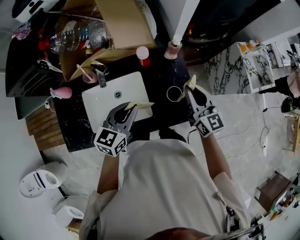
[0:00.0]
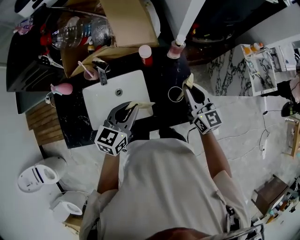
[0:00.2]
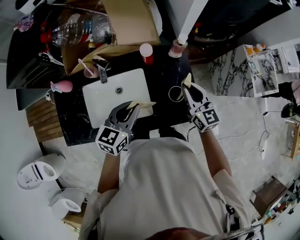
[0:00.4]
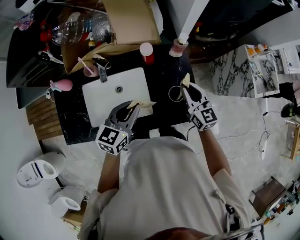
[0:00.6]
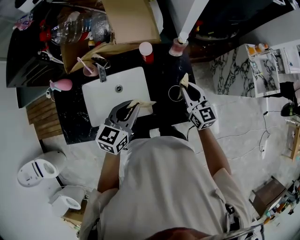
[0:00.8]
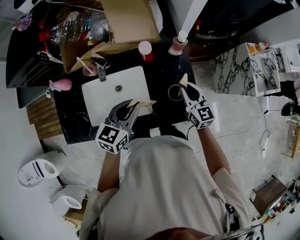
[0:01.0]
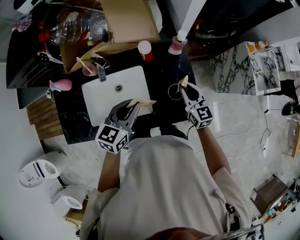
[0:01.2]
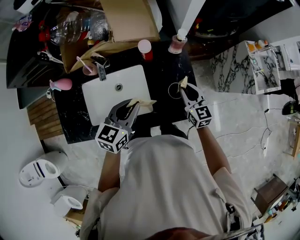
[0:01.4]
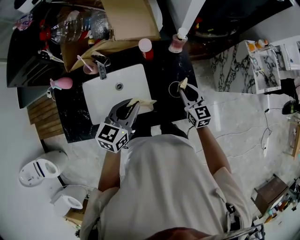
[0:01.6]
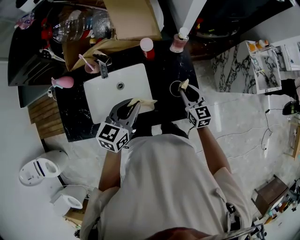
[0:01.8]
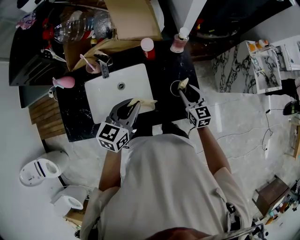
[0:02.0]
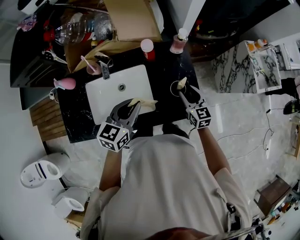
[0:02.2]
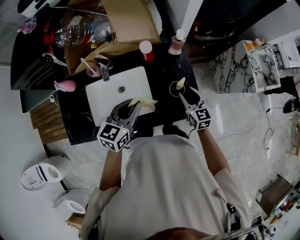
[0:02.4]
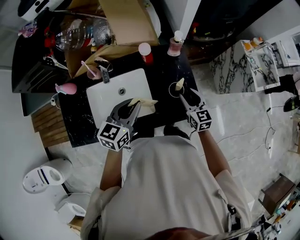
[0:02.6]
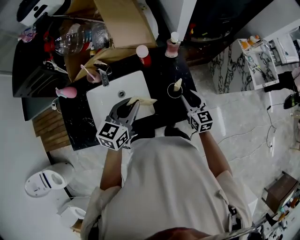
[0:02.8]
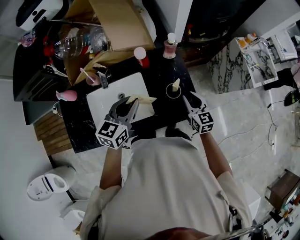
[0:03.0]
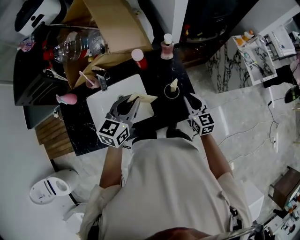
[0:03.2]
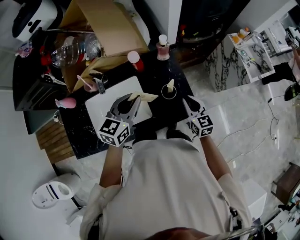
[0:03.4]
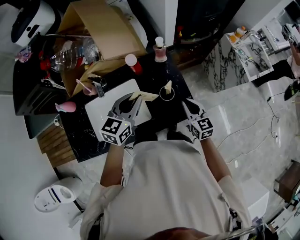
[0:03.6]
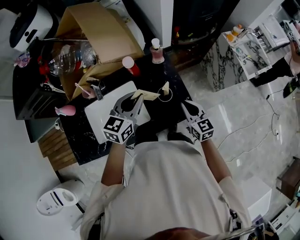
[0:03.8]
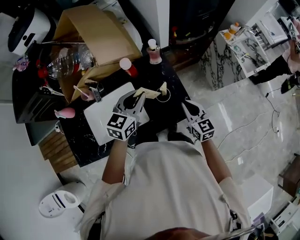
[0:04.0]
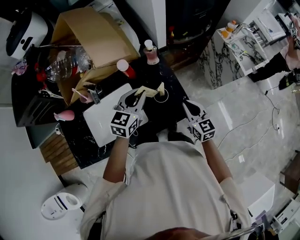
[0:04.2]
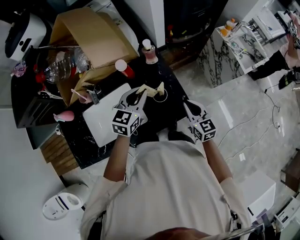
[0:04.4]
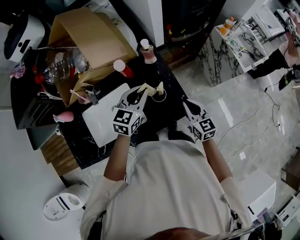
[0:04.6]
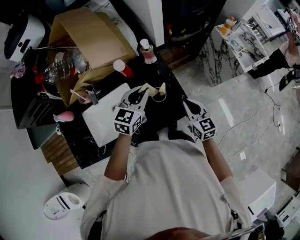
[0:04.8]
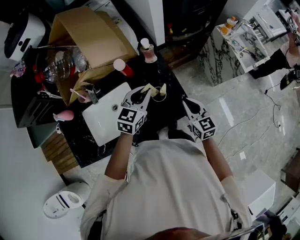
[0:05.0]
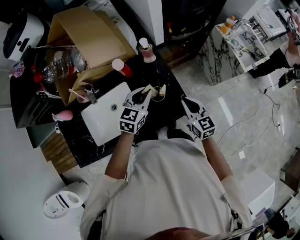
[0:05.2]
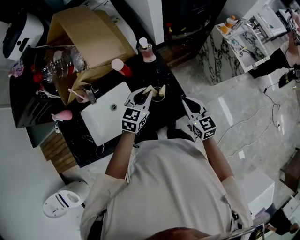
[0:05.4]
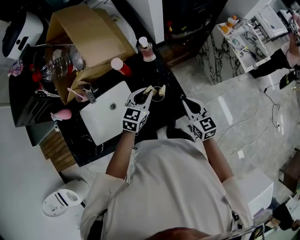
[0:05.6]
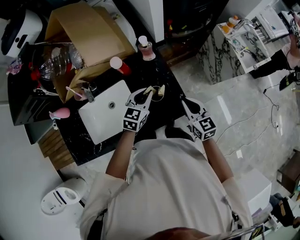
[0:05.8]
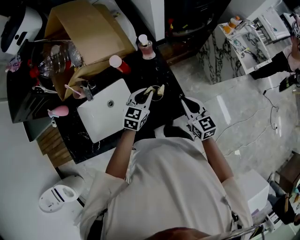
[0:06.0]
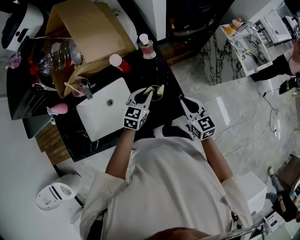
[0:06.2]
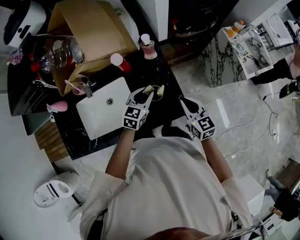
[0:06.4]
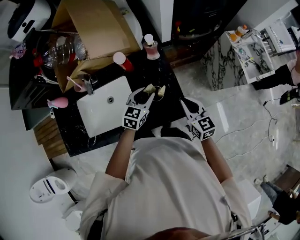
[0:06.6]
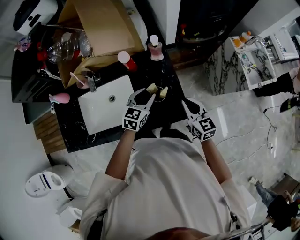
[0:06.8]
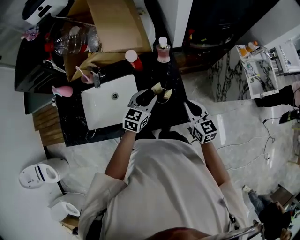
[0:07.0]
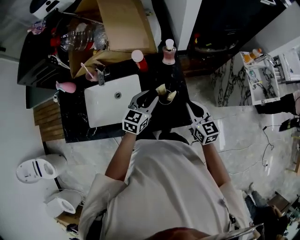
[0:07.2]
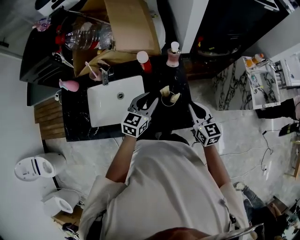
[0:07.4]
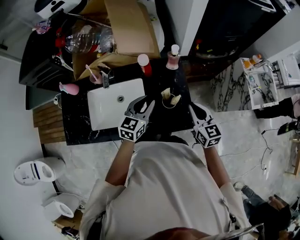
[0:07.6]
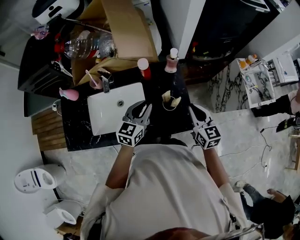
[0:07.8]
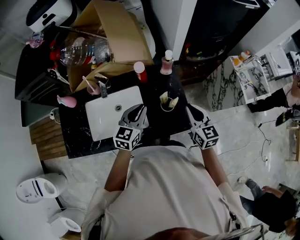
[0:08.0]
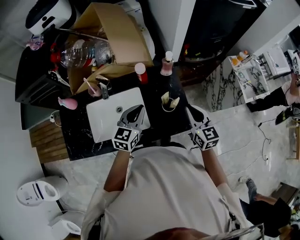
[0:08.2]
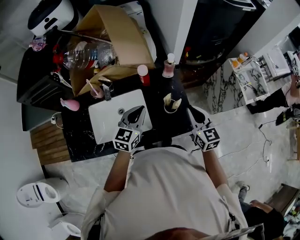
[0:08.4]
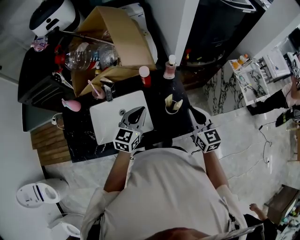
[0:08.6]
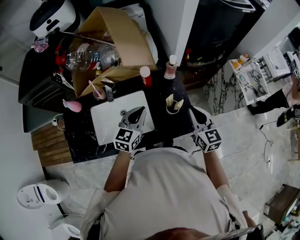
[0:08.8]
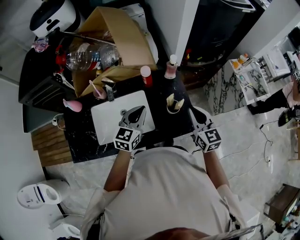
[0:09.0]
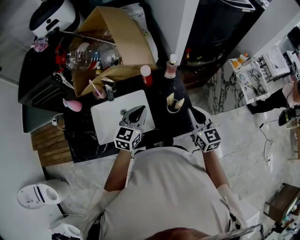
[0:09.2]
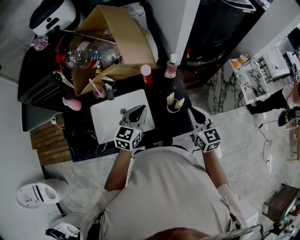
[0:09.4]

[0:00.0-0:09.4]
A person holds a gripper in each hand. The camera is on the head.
0:00.0 to 0:01.6: The right gripper moves downward, about 15 cm.
0:01.6 to 0:03.2: The right gripper heads to the right and backward, covering roughly 5 cm, and opens, then closes again, while the left gripper changes place by about 5 cm.
0:03.2 to 0:04.8: The right gripper is displaced to the right by some 5 cm. Meanwhile the left gripper travels to the right and forward by some 15 cm.
0:04.8 to 0:06.2: The left gripper heads downward, covering some 10 cm.
0:06.2 to 0:07.8: The right gripper heads upward, covering about 5 cm. The left gripper goes some 15 cm upward and to the left.
0:07.8 to 0:09.4: The left gripper changes place by some 5 cm, while the right gripper is displaced upward by some 5 cm.

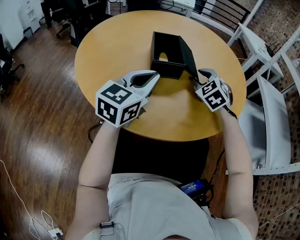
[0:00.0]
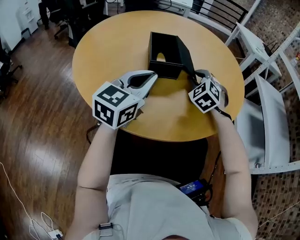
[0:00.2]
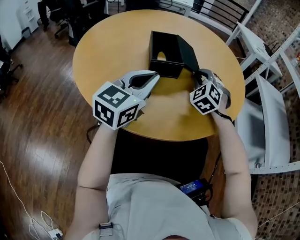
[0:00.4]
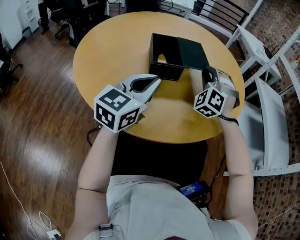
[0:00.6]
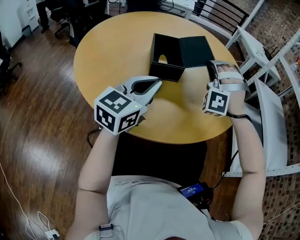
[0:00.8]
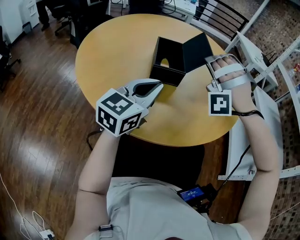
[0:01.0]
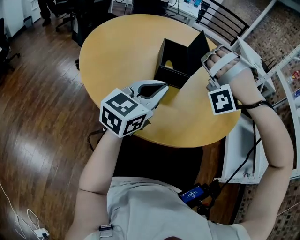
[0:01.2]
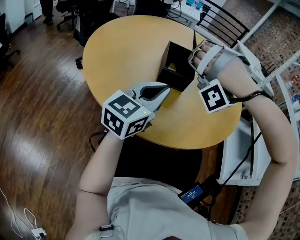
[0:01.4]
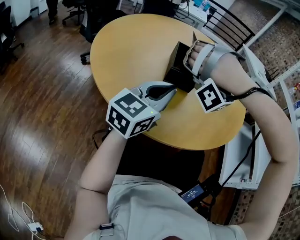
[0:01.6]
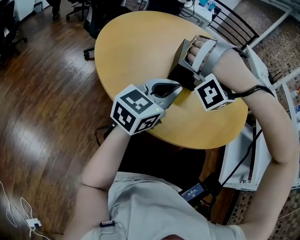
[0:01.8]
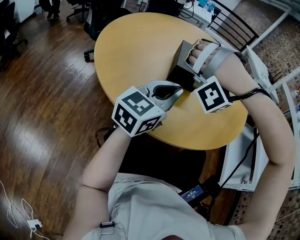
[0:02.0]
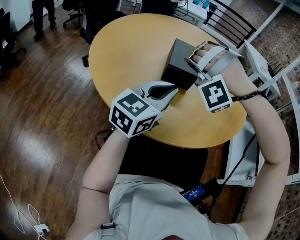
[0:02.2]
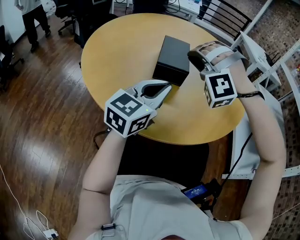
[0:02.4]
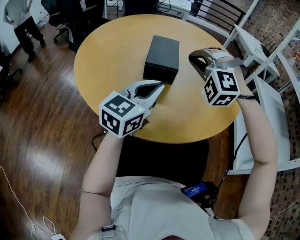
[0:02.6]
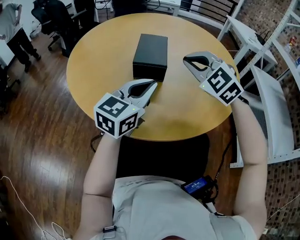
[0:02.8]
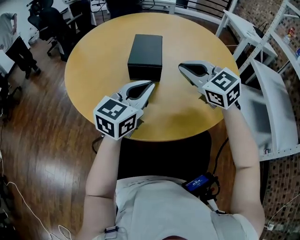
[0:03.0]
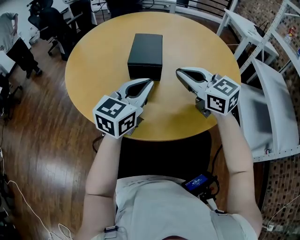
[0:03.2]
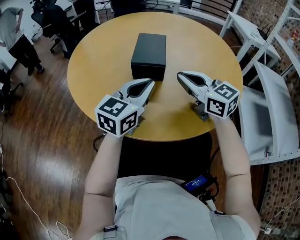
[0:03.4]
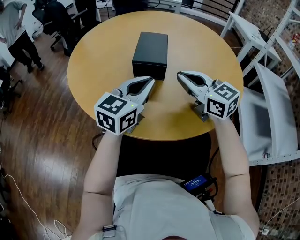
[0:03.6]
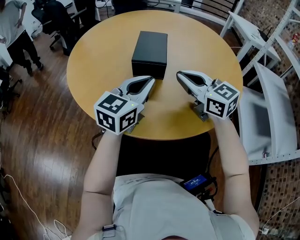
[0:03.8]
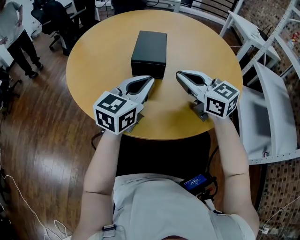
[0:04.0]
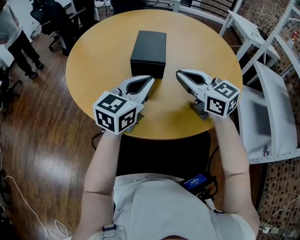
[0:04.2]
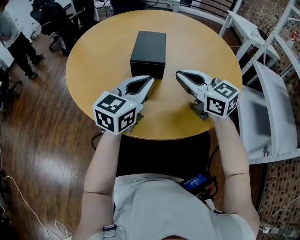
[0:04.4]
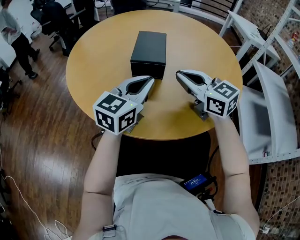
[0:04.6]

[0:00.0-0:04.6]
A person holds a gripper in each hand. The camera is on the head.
0:00.0 to 0:01.6: The left gripper changes place by approximately 5 cm.
0:01.6 to 0:03.0: The left gripper shifts by about 10 cm.

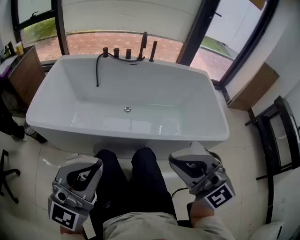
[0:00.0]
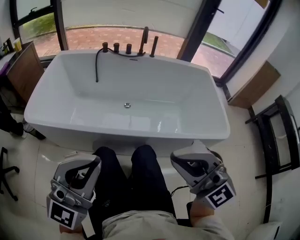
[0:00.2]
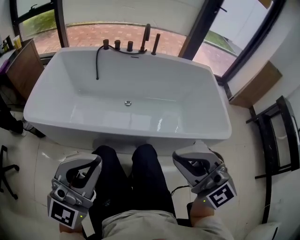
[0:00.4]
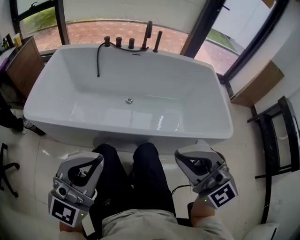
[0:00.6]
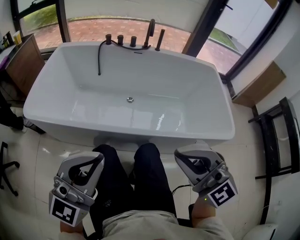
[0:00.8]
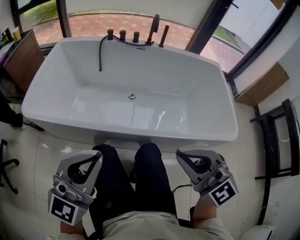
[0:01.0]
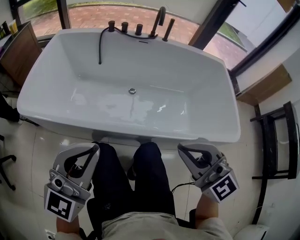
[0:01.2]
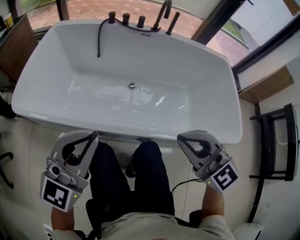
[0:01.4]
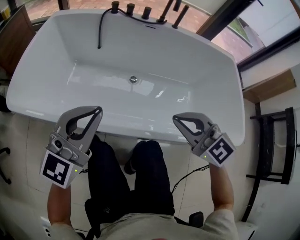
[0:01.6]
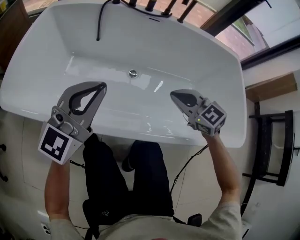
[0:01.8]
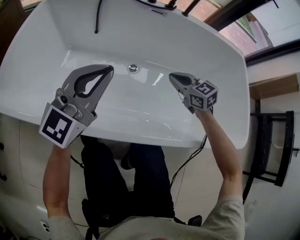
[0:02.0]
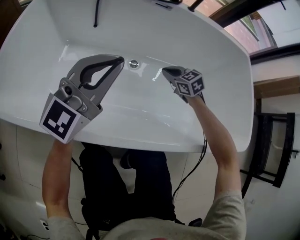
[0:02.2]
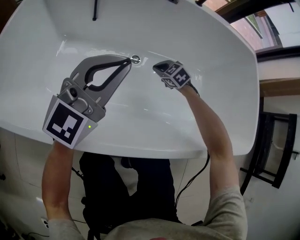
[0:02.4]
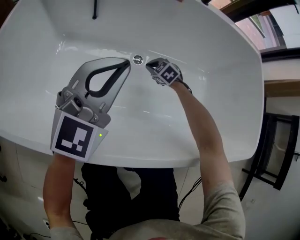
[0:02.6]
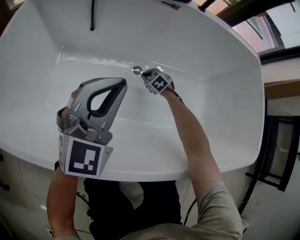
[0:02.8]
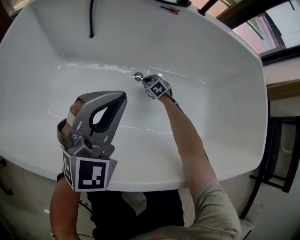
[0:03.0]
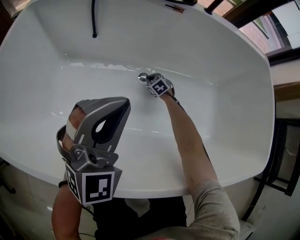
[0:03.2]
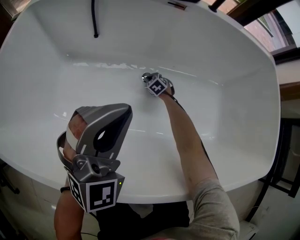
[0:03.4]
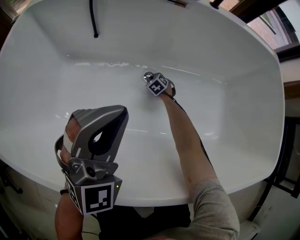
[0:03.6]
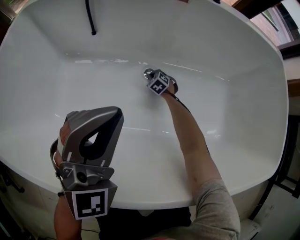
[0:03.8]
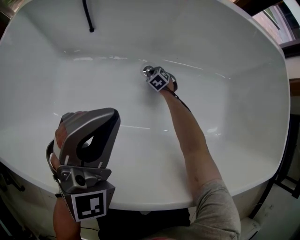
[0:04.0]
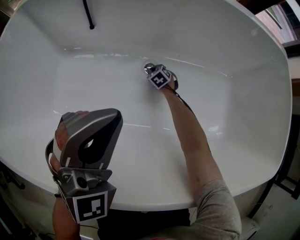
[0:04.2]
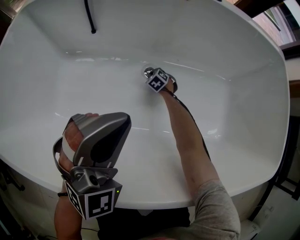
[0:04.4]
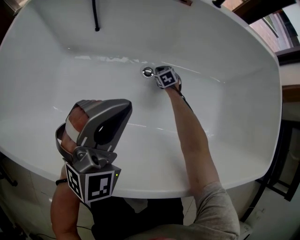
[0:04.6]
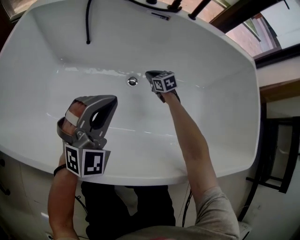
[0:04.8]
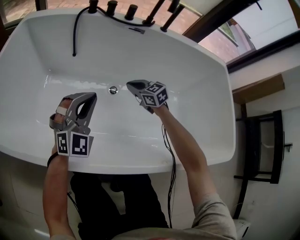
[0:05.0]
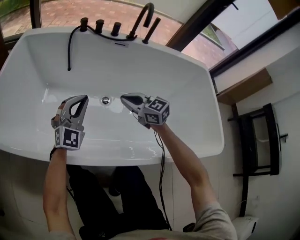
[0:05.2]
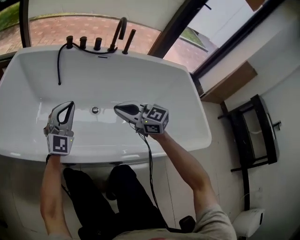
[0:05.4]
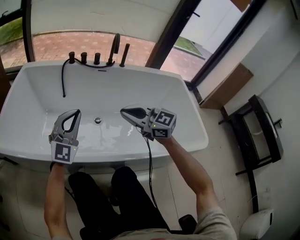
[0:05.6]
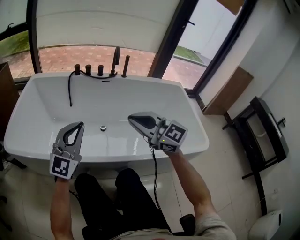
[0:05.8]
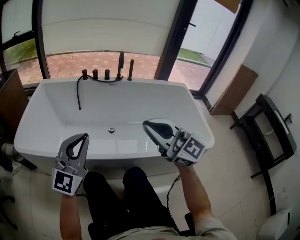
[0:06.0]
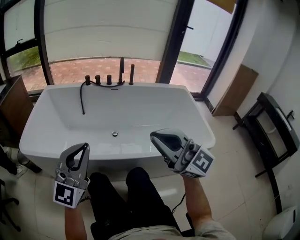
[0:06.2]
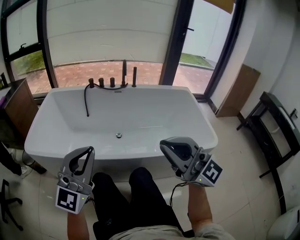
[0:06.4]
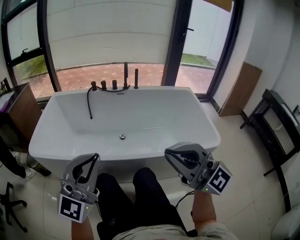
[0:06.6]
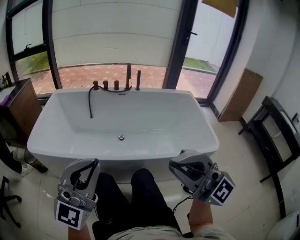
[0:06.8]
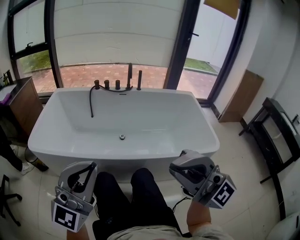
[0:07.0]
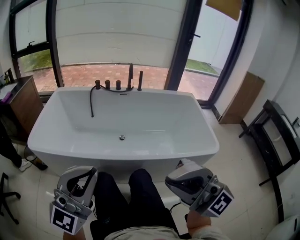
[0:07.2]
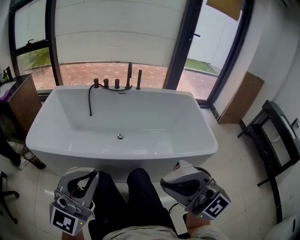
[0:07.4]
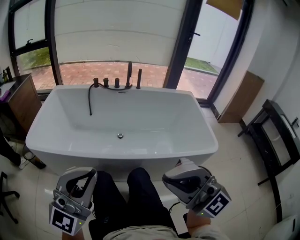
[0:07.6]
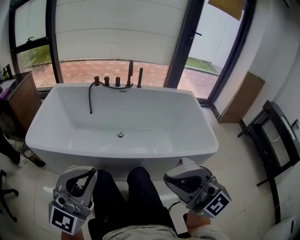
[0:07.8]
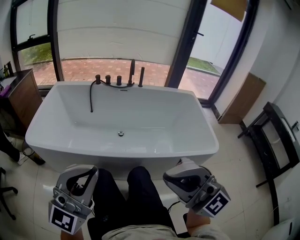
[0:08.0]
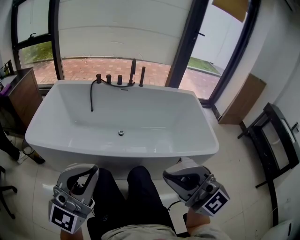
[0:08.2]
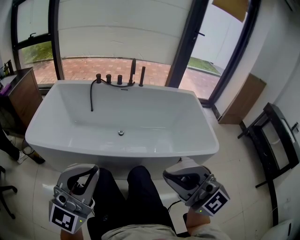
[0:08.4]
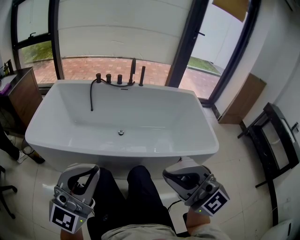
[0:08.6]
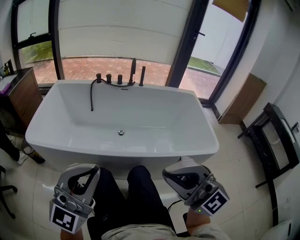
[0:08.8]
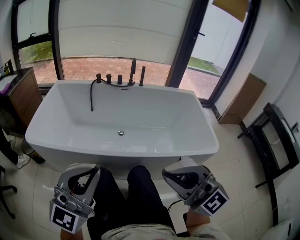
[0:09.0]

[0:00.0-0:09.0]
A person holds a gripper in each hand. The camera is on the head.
0:00.0 to 0:01.6: Both grippers move forward and downward, some 30 cm. The right gripper tips its fingers downward by about 30 degrees.
0:01.6 to 0:03.0: The left gripper shifts some 25 cm forward and downward, and swivels roughly 20 degrees, while the right gripper travels downward and forward by some 60 cm, and tilts its fingers approximately 30 degrees downward.
0:03.0 to 0:04.4: The right gripper goes roughly 5 cm downward.
0:04.4 to 0:06.0: The right gripper travels upward and backward by about 90 cm, and tilts its fingers roughly 70 degrees upward; the left gripper travels upward and backward by roughly 35 cm, and rotates about 40 degrees.
0:06.0 to 0:07.6: The right gripper travels backward by approximately 20 cm, and swivels approximately 30 degrees; the left gripper moves backward and upward, some 20 cm.
0:07.6 to 0:09.0: The grippers stay close to where they were, moving slightly.

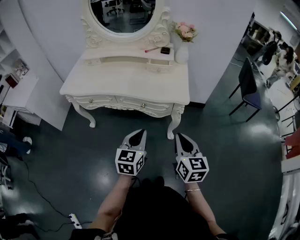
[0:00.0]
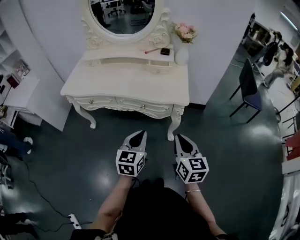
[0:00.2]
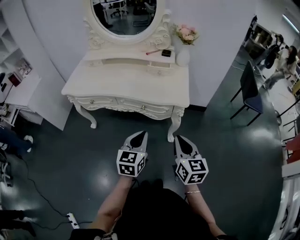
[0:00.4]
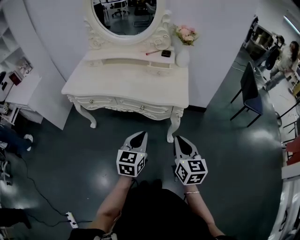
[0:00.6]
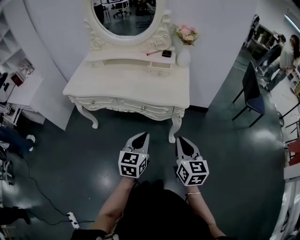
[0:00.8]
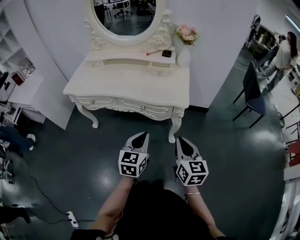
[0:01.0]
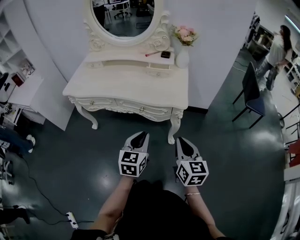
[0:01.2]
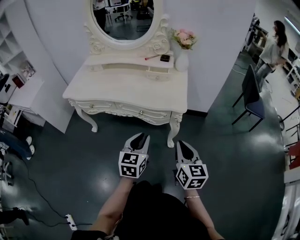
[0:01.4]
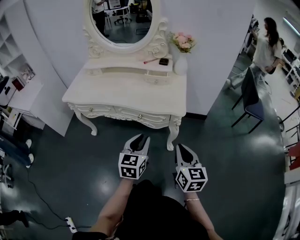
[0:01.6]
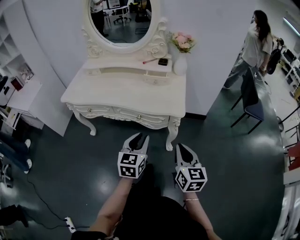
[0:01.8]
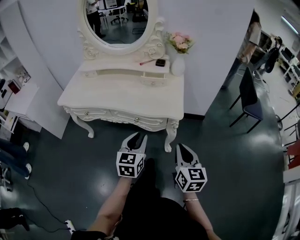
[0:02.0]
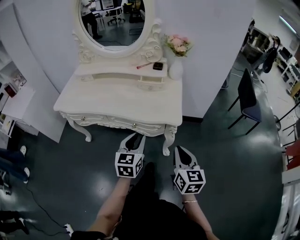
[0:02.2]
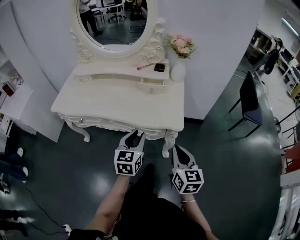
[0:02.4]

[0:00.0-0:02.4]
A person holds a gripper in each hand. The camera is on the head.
0:00.0 to 0:01.2: The grippers make only small movements.
0:01.2 to 0:02.4: The grippers both shift forward by about 10 cm.
